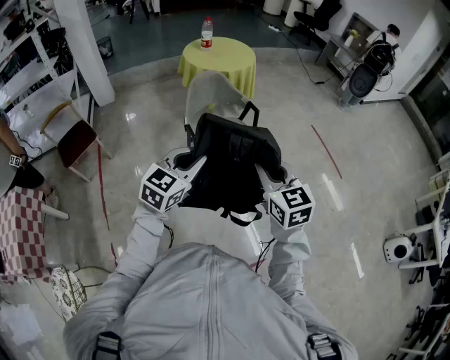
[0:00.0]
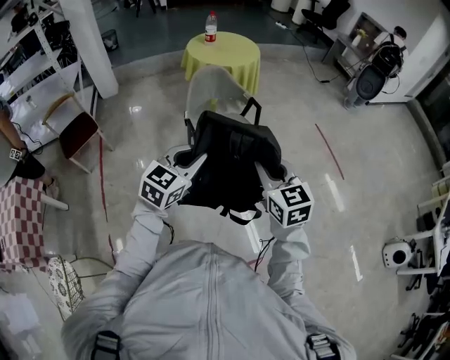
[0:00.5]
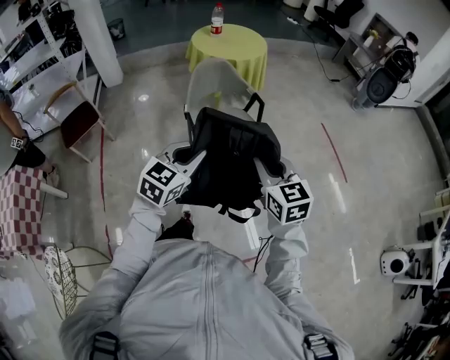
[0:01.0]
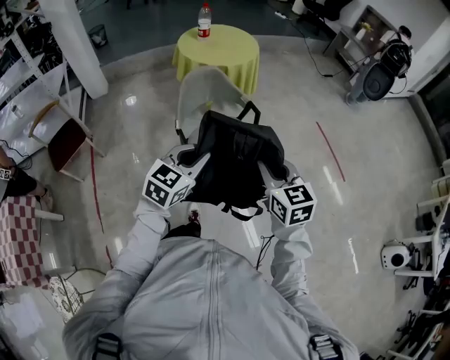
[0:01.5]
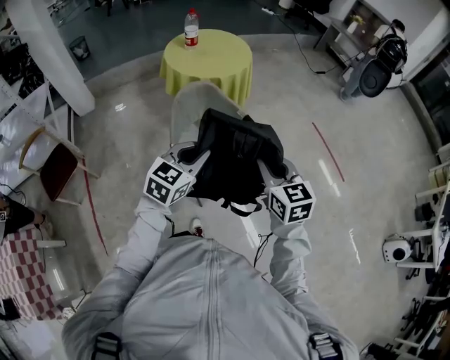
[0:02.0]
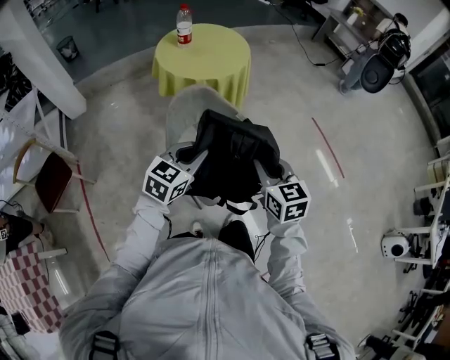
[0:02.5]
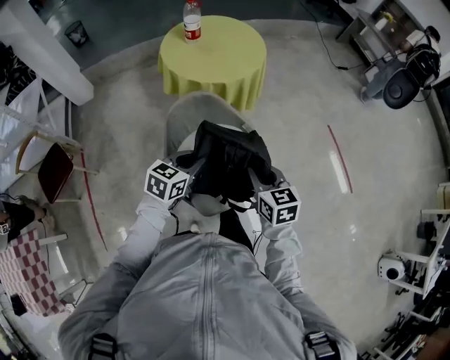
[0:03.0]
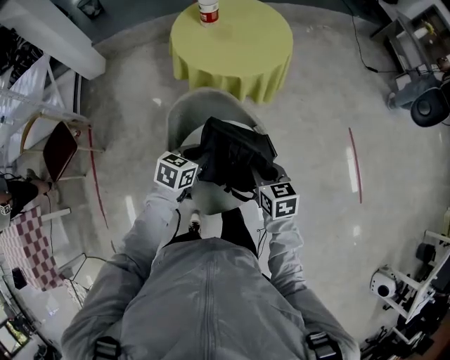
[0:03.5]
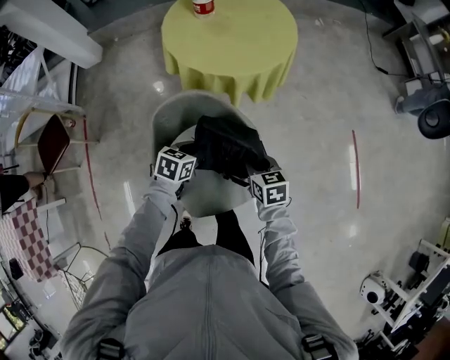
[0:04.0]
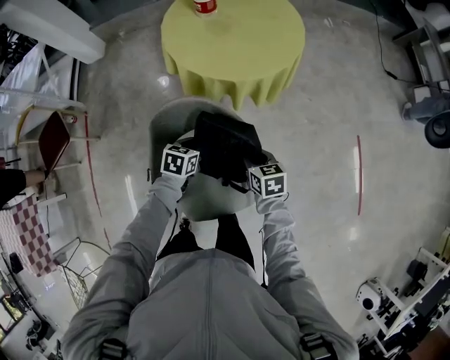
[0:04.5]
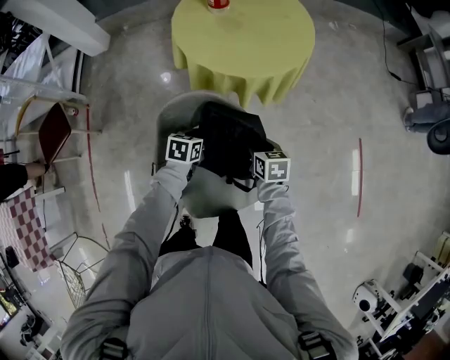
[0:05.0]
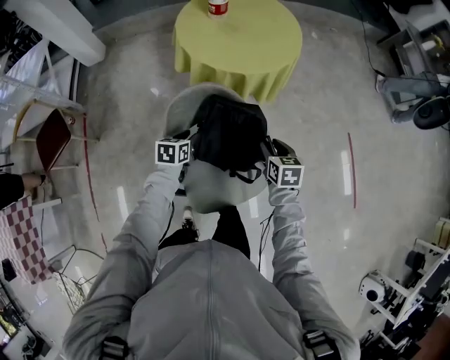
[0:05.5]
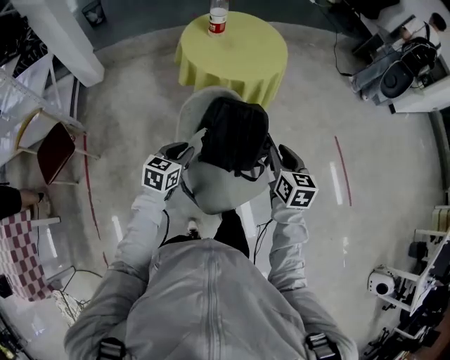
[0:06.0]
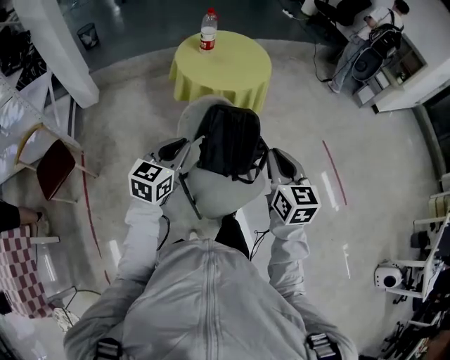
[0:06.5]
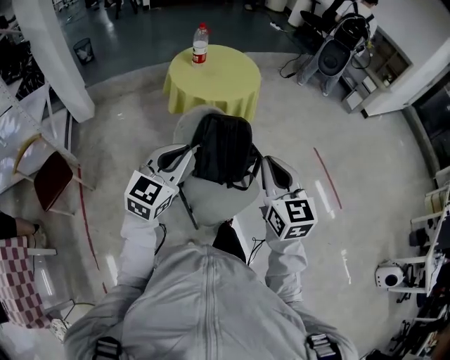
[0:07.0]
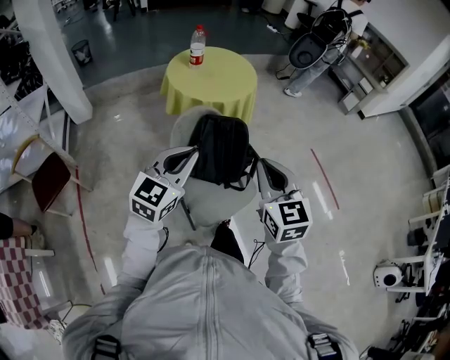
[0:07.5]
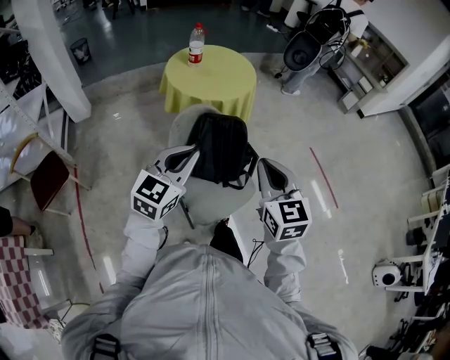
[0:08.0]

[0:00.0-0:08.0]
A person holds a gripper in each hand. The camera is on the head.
0:00.0 to 0:02.0: The two grippers go some 30 cm forward.
0:02.0 to 0:04.0: The two grippers go approximately 50 cm forward and downward. The left gripper turns by roughly 50 degrees. Meanwhile the right gripper swivels roughly 30 degrees.
0:04.0 to 0:06.0: The right gripper is displaced upward and backward by some 20 cm, and changes its angle by about 30 degrees. Meanwhile the left gripper is displaced to the left, backward and upward by some 20 cm, and rotates about 20 degrees.
0:06.0 to 0:08.0: The left gripper heads upward and backward, covering some 25 cm, and changes its angle by roughly 30 degrees; the right gripper is displaced backward and upward by approximately 25 cm, turns by approximately 20 degrees, and closes its fingers.

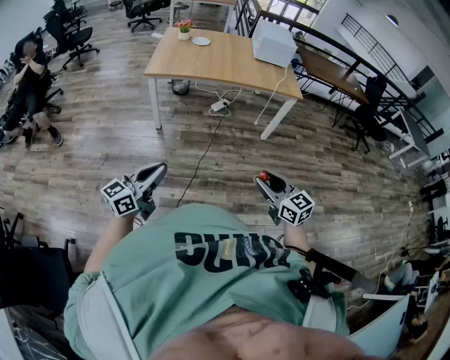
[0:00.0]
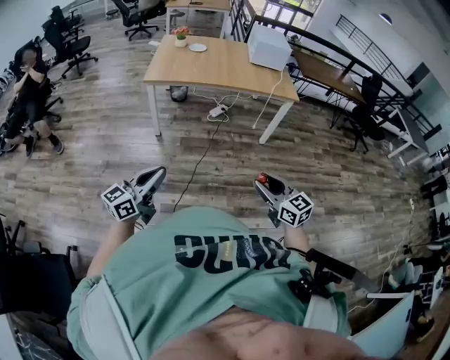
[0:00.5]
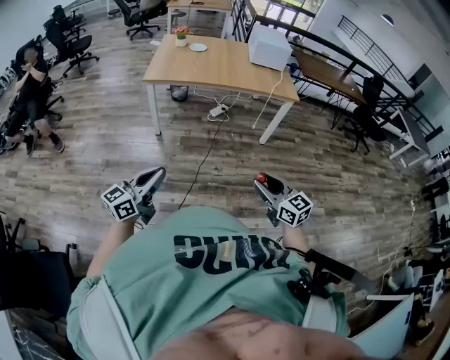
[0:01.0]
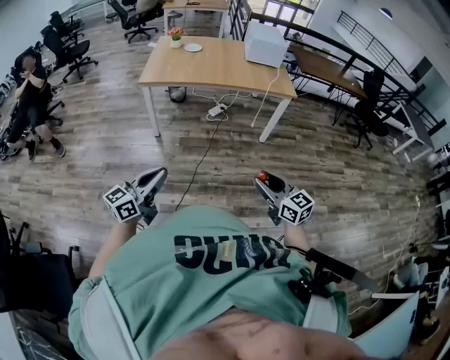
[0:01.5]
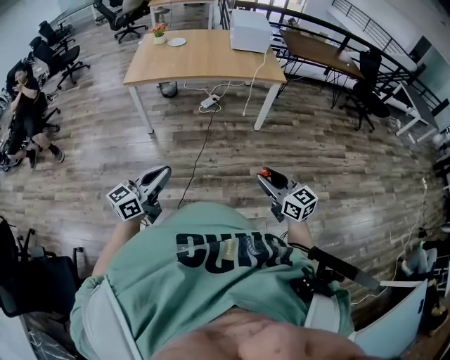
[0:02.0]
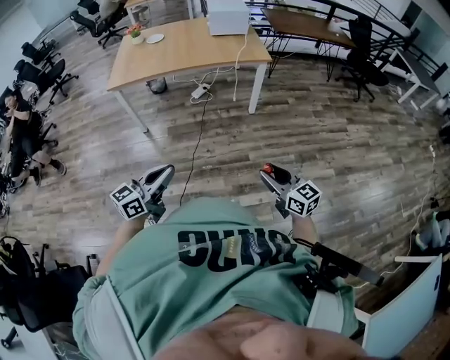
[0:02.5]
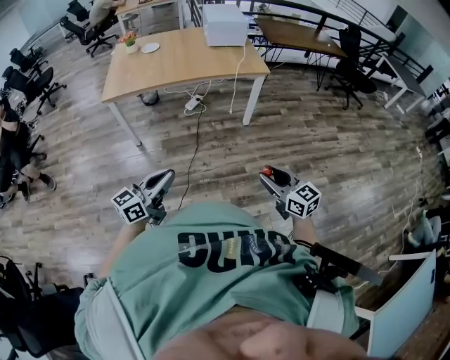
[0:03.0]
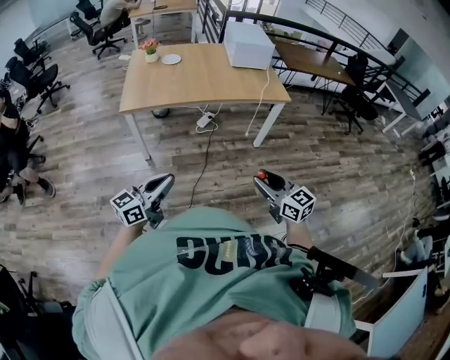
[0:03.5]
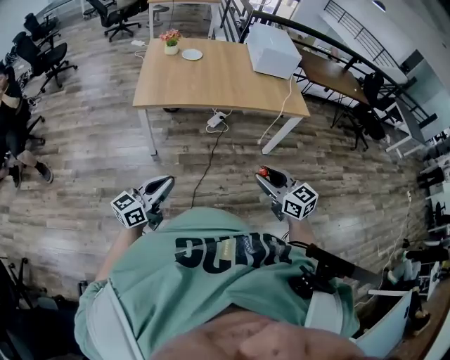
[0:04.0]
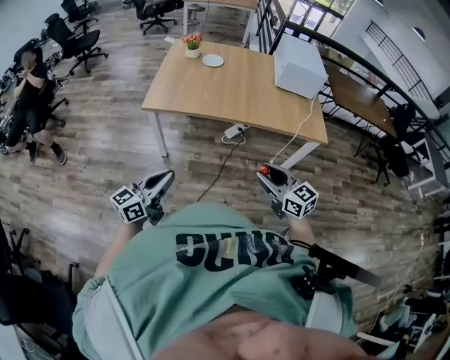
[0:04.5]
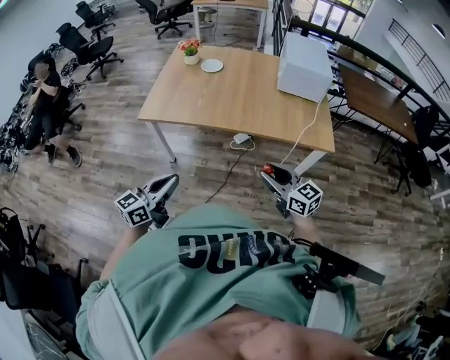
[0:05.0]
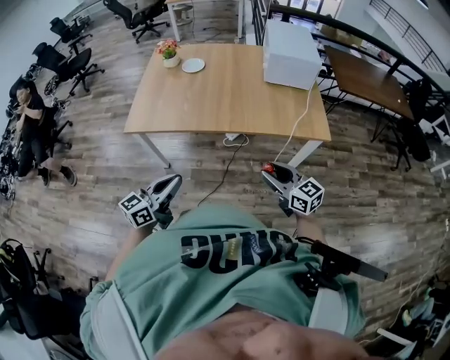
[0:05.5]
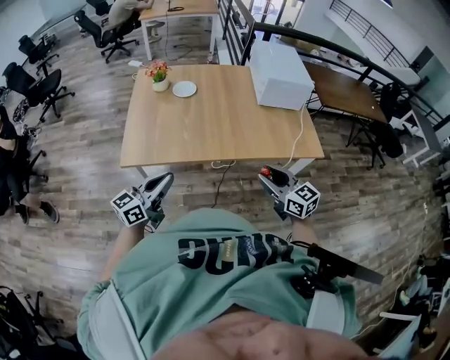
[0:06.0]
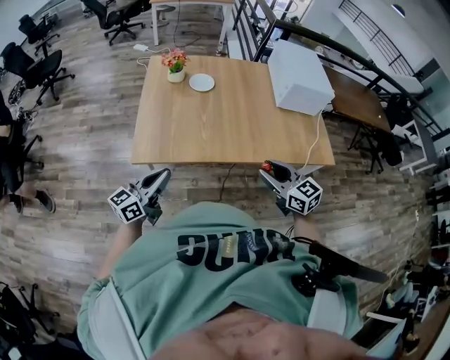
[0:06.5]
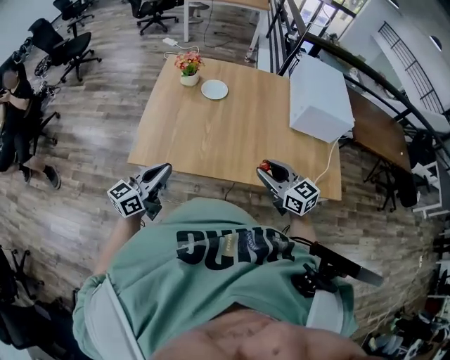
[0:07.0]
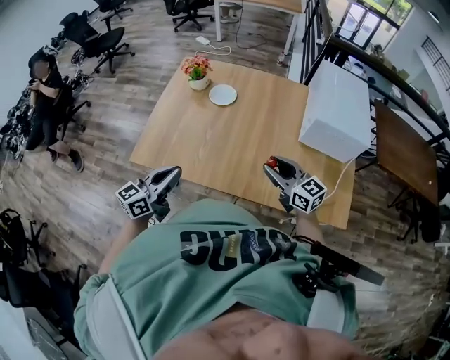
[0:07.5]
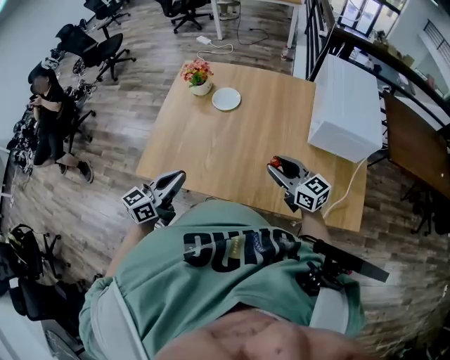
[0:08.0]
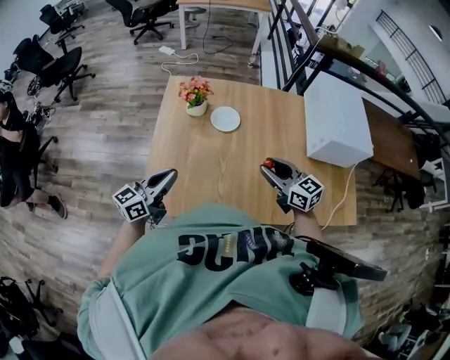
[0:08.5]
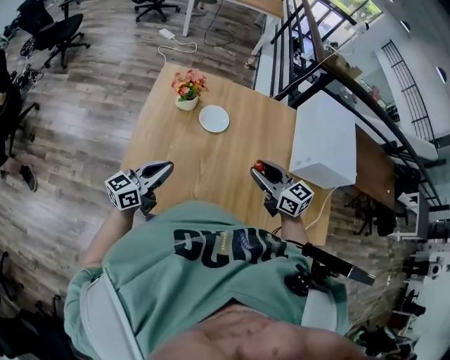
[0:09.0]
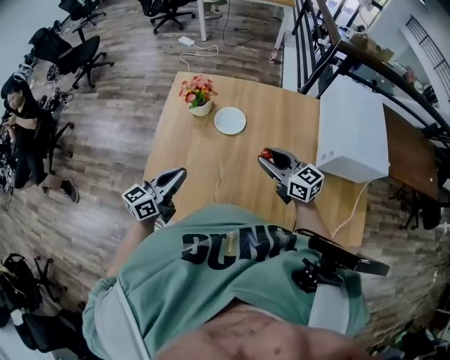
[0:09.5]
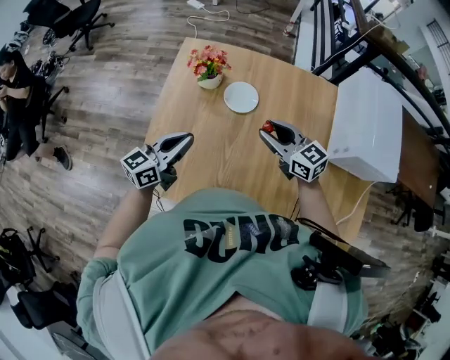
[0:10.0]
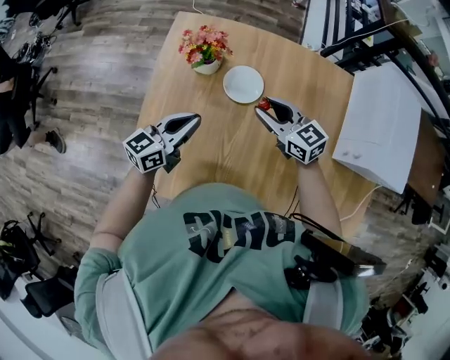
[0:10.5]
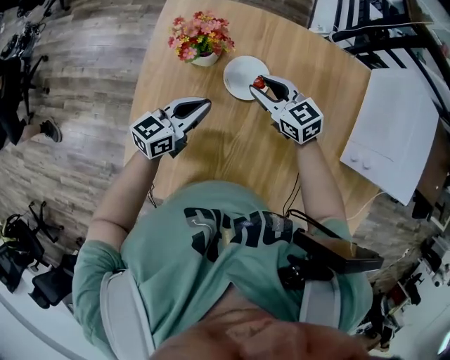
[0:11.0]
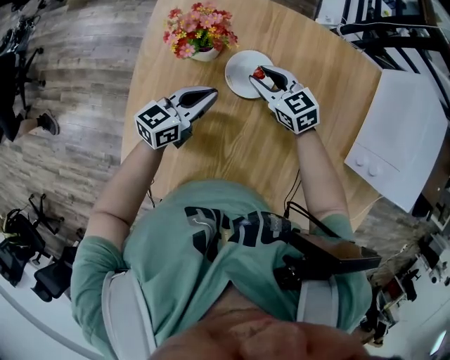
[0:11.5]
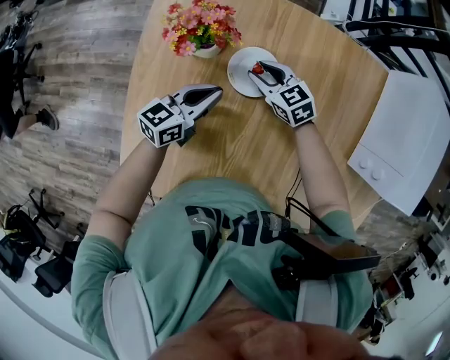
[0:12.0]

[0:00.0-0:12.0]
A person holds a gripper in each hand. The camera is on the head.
0:00.0 to 0:02.0: Both grippers travel together to the right, roughly 15 cm.
0:02.0 to 0:04.0: The grippers both shift to the left and forward by about 35 cm.
0:04.0 to 0:06.0: The grippers both shift forward by some 35 cm.
0:06.0 to 0:08.0: The right gripper moves forward, roughly 35 cm, and turns by about 20 degrees, while the left gripper goes about 20 cm forward, and swivels roughly 20 degrees.
0:08.0 to 0:10.0: The two grippers go roughly 25 cm forward and to the left.
0:10.0 to 0:12.0: Both grippers move downward and forward, about 30 cm. The right gripper changes its angle by roughly 20 degrees.

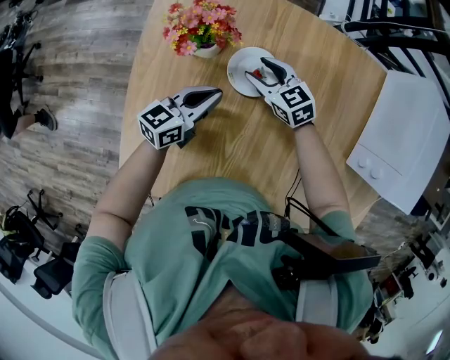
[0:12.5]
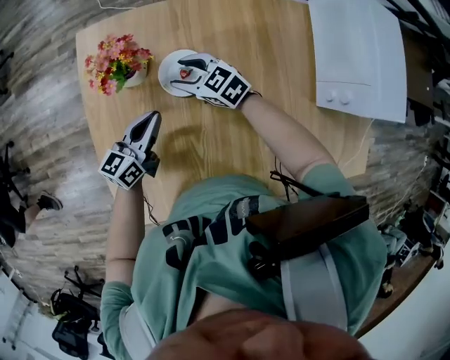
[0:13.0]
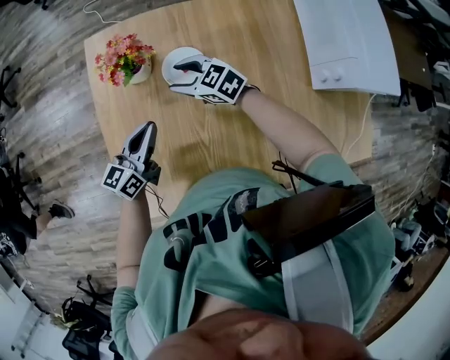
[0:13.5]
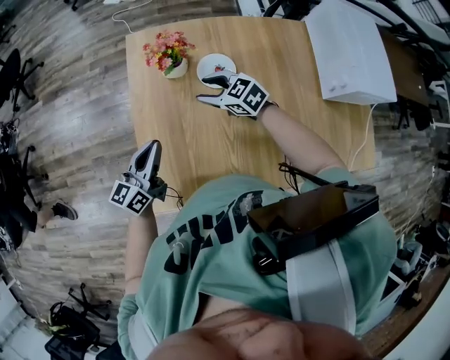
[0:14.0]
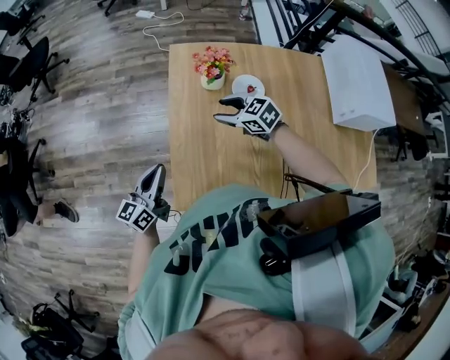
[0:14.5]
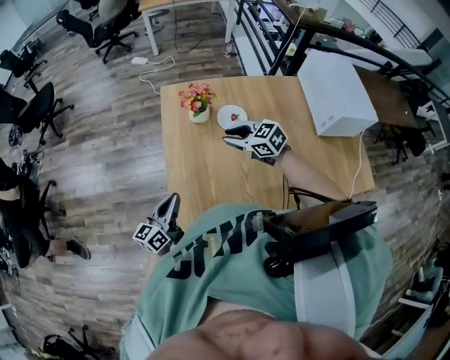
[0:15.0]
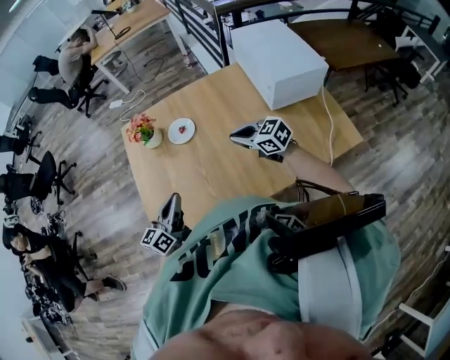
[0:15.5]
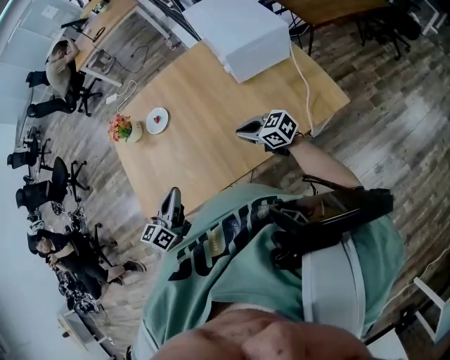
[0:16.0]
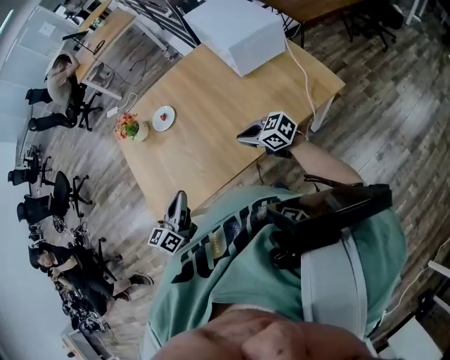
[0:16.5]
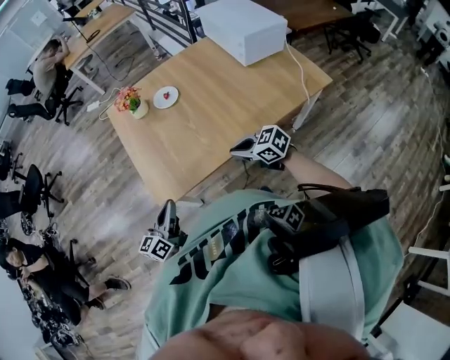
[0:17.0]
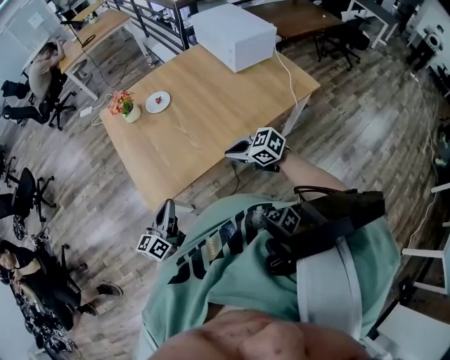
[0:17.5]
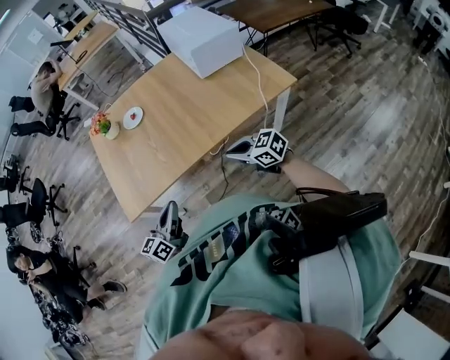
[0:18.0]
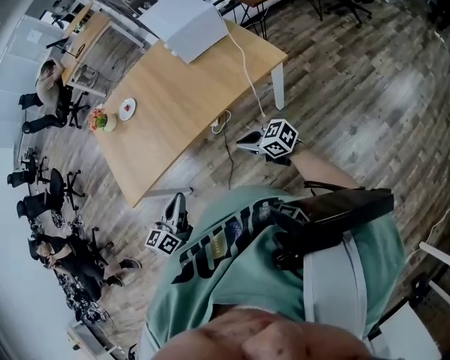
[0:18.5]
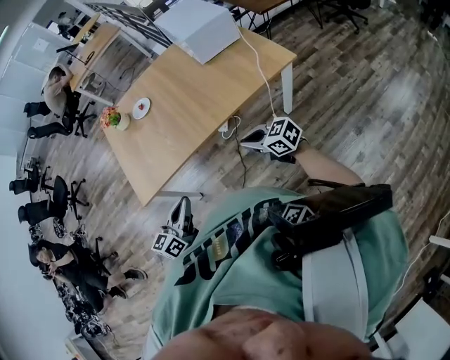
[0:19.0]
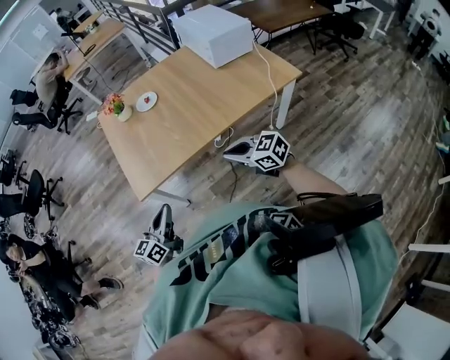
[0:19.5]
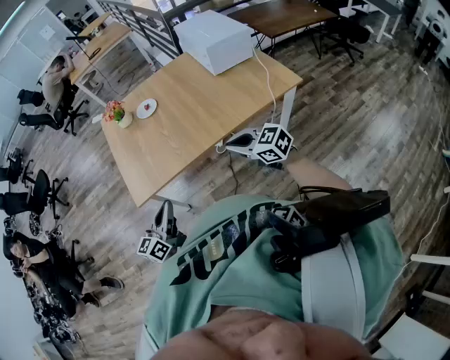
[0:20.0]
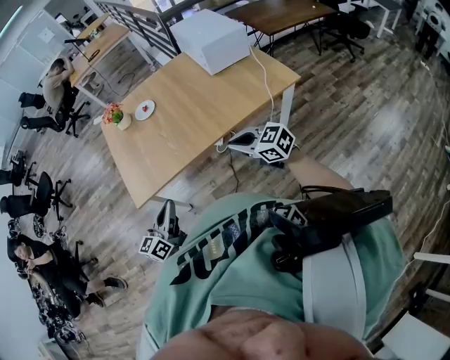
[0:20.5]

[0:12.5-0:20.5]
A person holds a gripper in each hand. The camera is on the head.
0:12.5 to 0:14.5: The right gripper travels to the left, upward and backward by some 30 cm, while the left gripper is displaced to the left, backward and upward by about 40 cm.
0:14.5 to 0:16.5: Both grippers move to the right and backward, approximately 50 cm. The left gripper turns by roughly 20 degrees; the right gripper rotates about 30 degrees, and closes its fingers.
0:16.5 to 0:18.5: Both grippers travel together backward and to the right, about 30 cm.
0:18.5 to 0:20.5: The right gripper travels to the left and upward by approximately 20 cm, while the left gripper is displaced to the left by some 20 cm.
